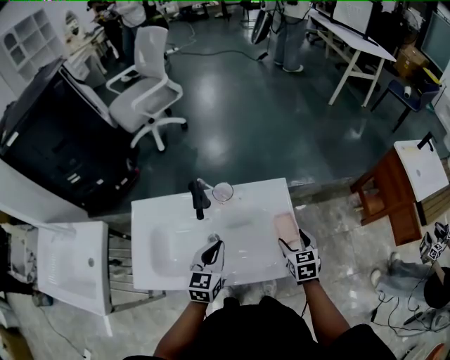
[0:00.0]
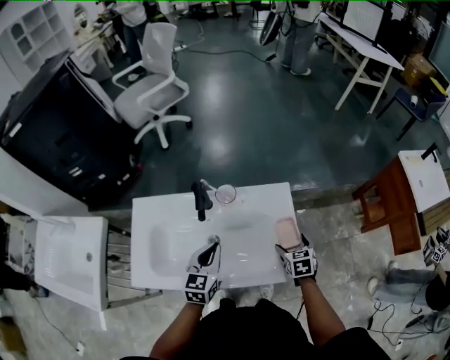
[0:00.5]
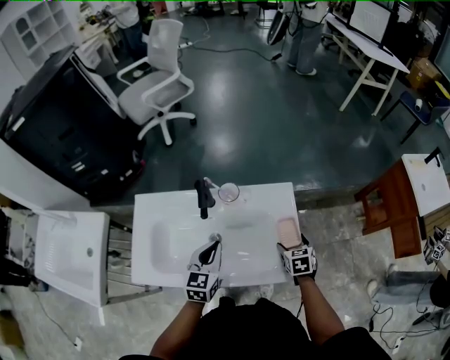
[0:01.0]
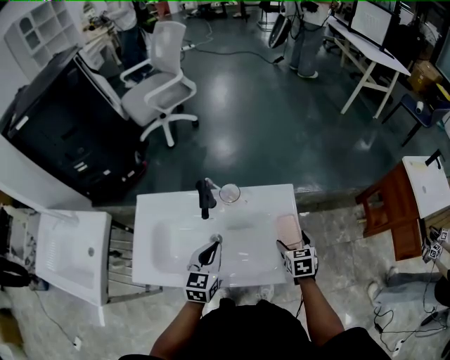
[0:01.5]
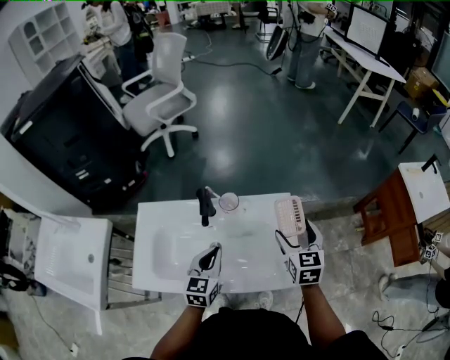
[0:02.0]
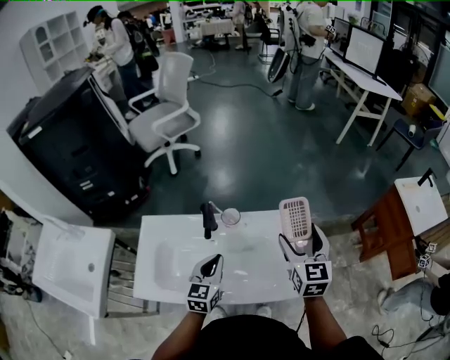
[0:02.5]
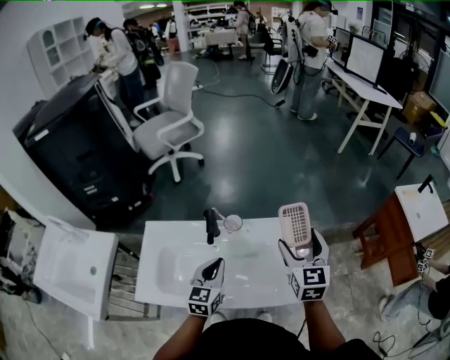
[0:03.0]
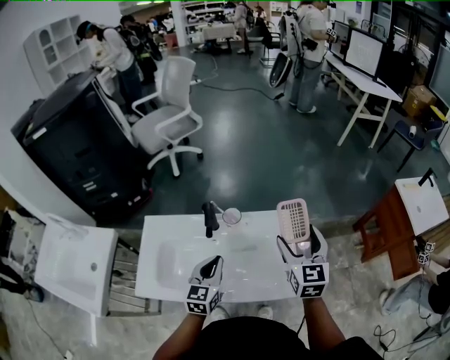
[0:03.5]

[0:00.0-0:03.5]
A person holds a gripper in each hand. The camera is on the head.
0:00.0 to 0:02.0: The right gripper heads upward and forward, covering some 15 cm.
0:02.0 to 0:03.5: The right gripper is displaced upward by some 10 cm.

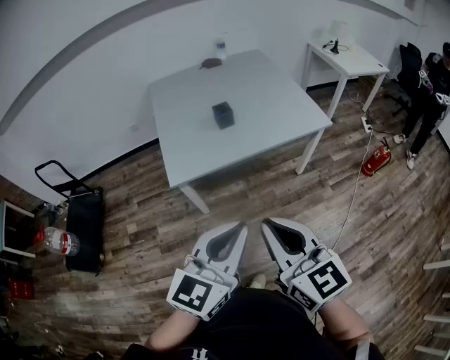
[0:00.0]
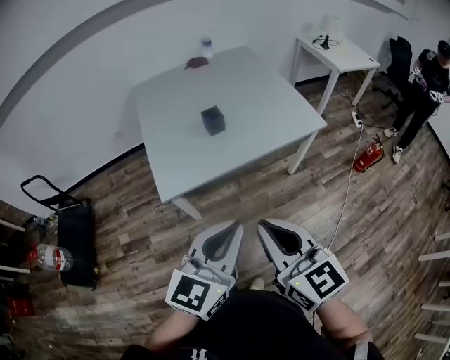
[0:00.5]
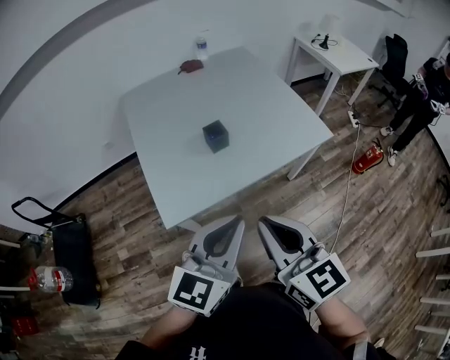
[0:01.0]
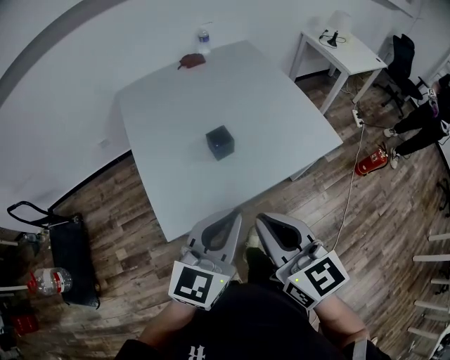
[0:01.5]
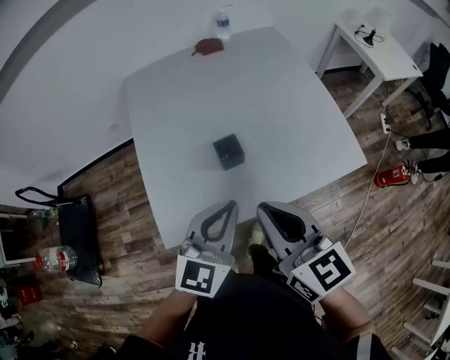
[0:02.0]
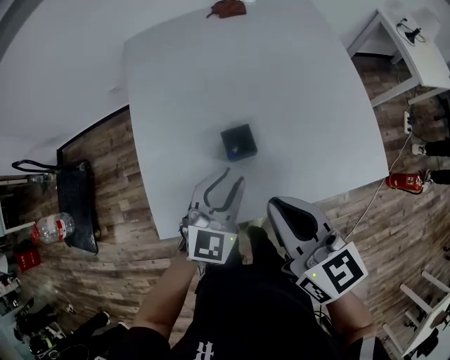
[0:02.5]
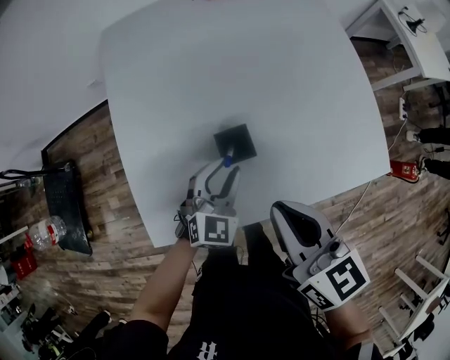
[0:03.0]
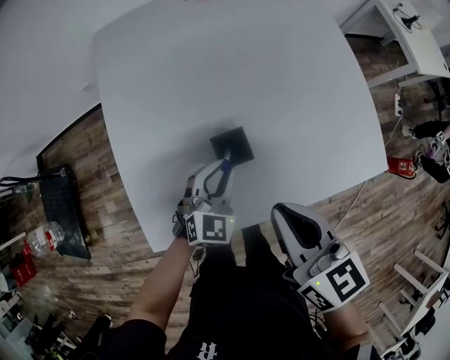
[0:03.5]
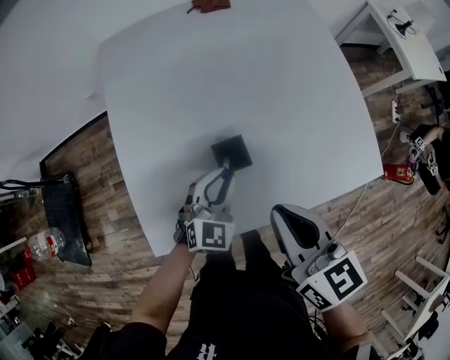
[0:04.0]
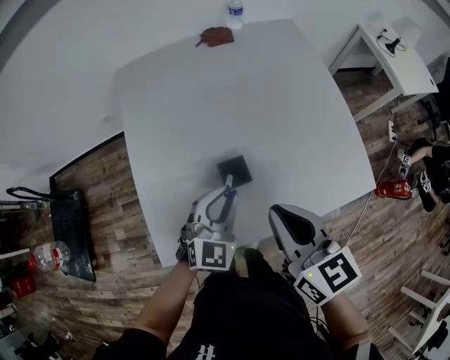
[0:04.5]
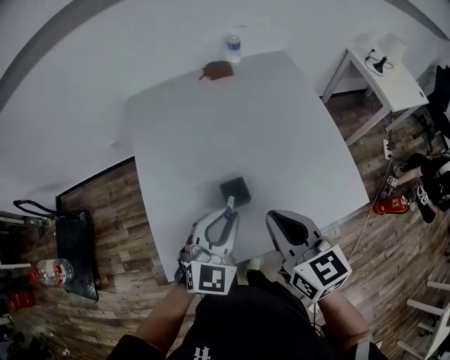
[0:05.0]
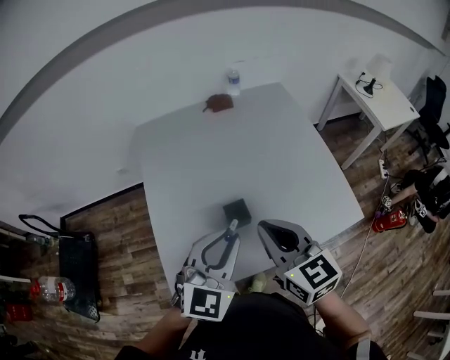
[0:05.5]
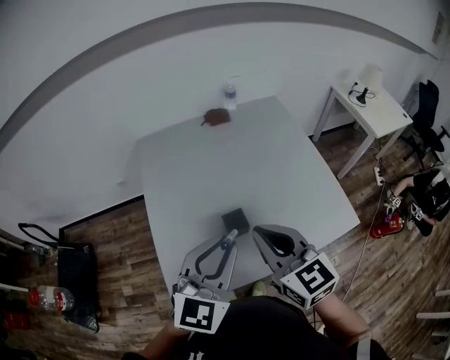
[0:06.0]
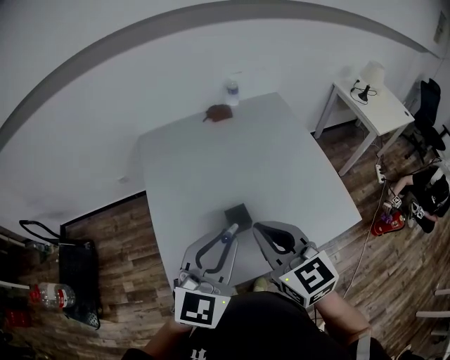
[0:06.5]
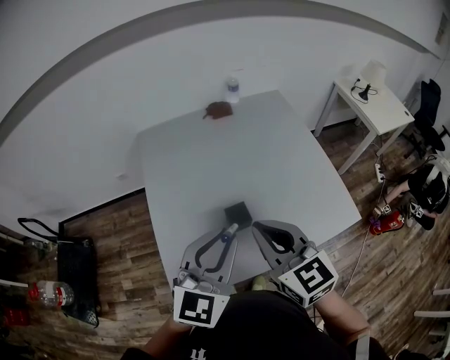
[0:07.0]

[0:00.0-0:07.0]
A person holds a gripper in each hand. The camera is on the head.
0:00.0 to 0:02.0: The grippers both shift forward by approximately 35 cm.
0:02.0 to 0:03.5: The left gripper is displaced downward and forward by about 25 cm, and changes its angle by some 20 degrees. Meanwhile the right gripper moves downward and forward, some 15 cm.
0:03.5 to 0:05.0: The left gripper goes some 15 cm upward, while the right gripper goes some 5 cm upward.
0:05.0 to 0:07.0: The left gripper moves upward, approximately 15 cm, while the right gripper goes about 5 cm upward.

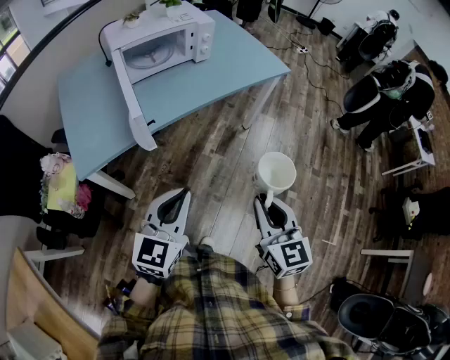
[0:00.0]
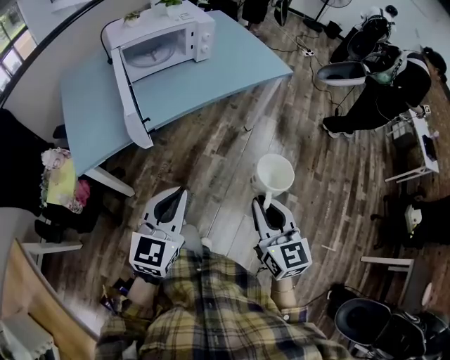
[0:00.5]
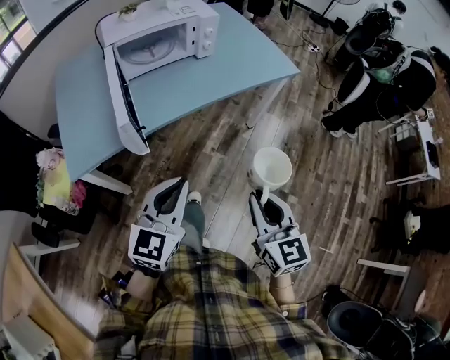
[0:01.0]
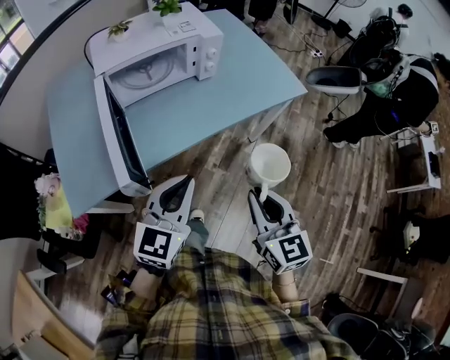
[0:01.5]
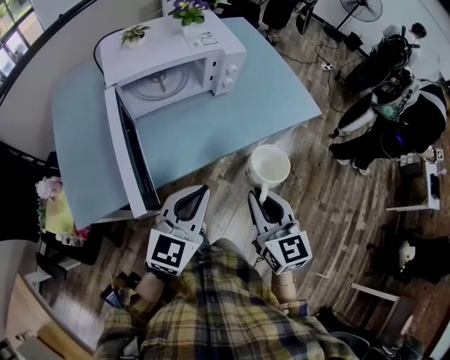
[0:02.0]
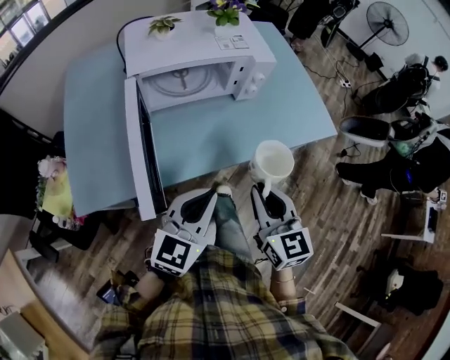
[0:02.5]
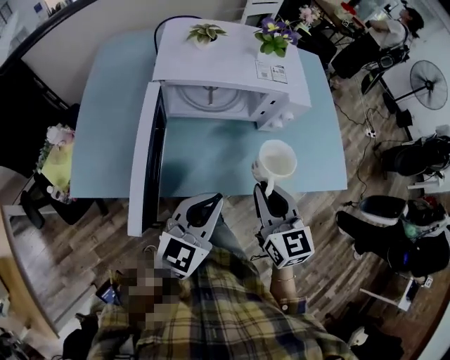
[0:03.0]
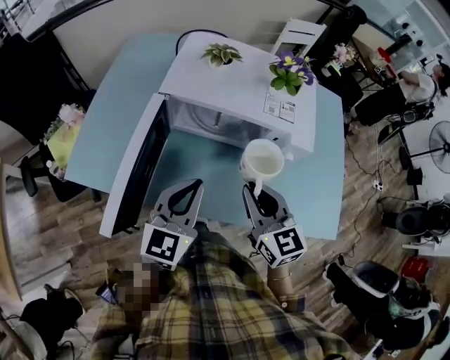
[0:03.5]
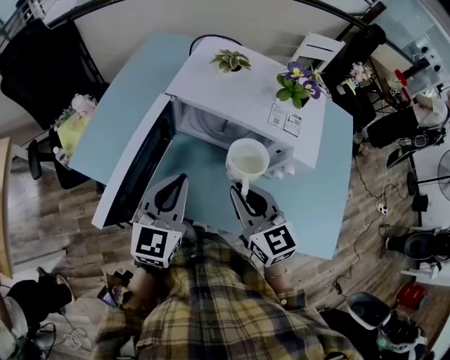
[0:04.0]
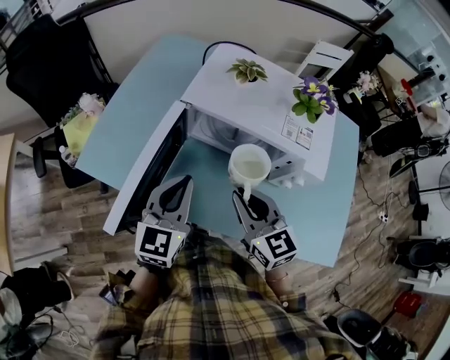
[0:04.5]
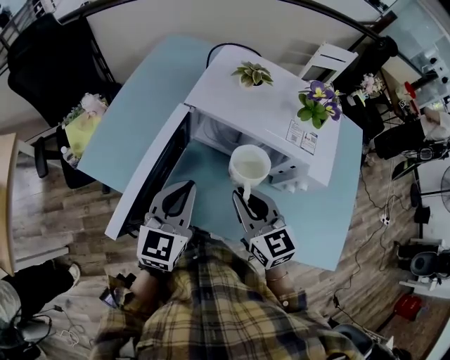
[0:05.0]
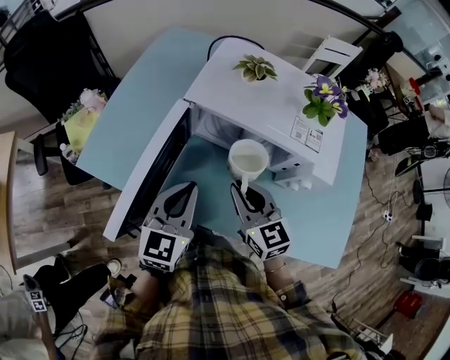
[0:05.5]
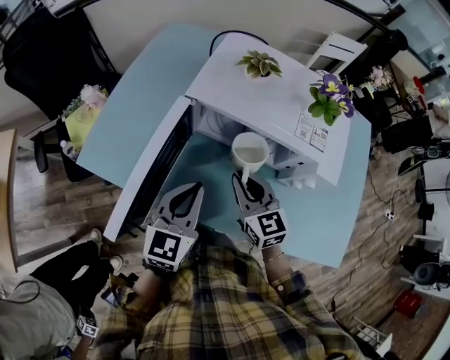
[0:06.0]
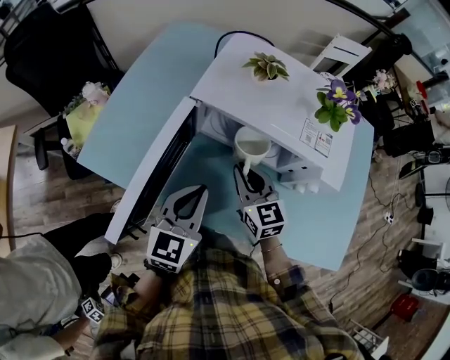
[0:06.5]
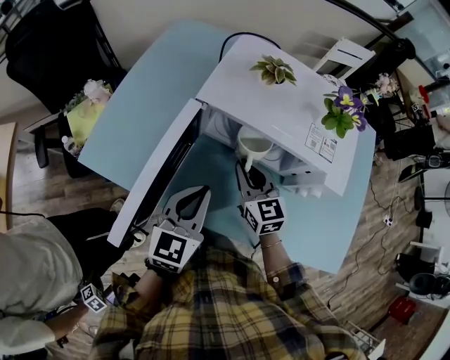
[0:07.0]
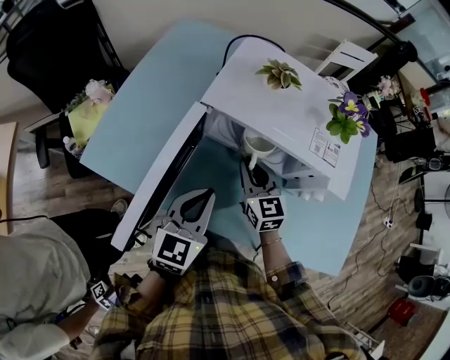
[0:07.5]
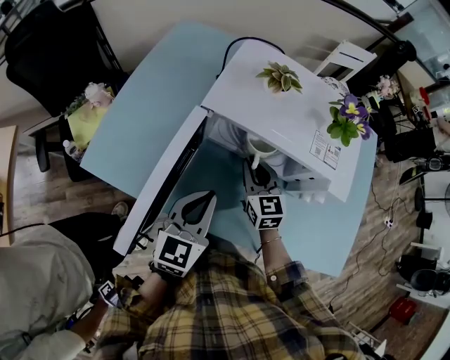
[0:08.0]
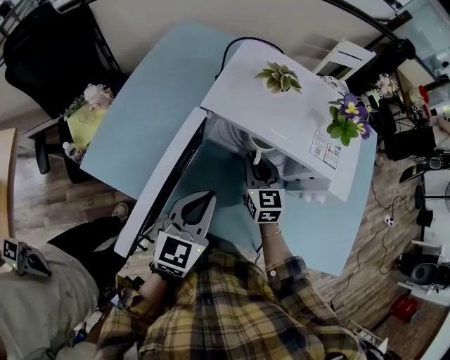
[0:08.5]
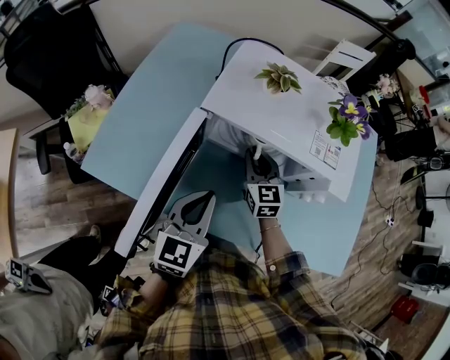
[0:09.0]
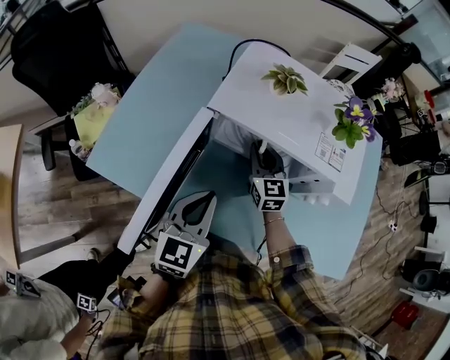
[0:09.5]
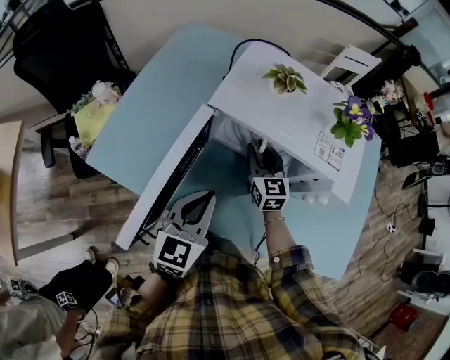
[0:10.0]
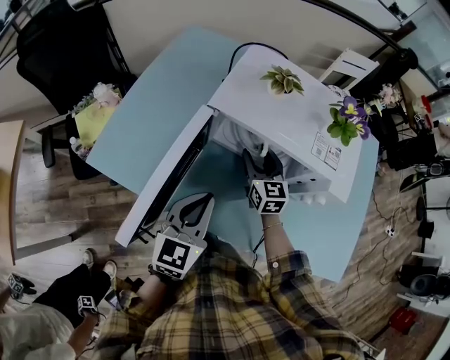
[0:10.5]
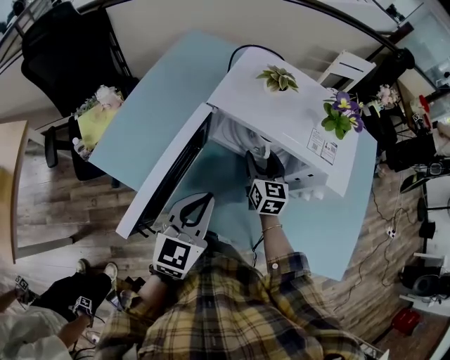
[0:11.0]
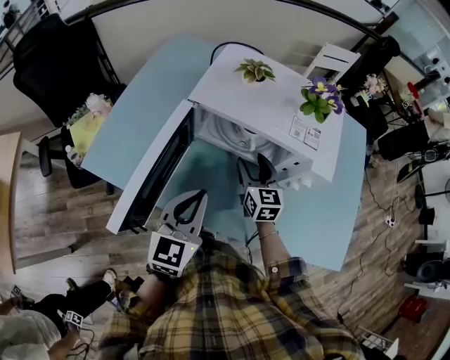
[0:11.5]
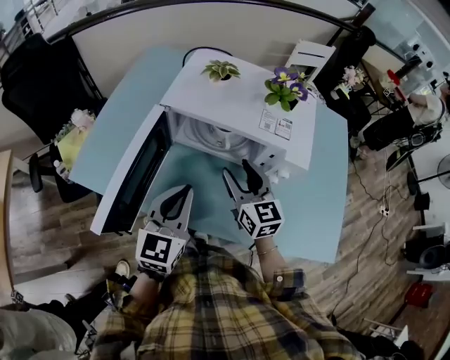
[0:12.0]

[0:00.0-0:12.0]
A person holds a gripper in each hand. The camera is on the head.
0:00.0 to 0:02.0: The grippers both shift forward by some 30 cm.
0:02.0 to 0:04.0: The right gripper shifts by some 25 cm, and turns by about 50 degrees. Meanwhile the left gripper moves approximately 20 cm, and turns by roughly 60 degrees.
0:04.0 to 0:06.0: The right gripper goes approximately 10 cm downward and forward.
0:06.0 to 0:08.0: The right gripper is displaced forward by about 10 cm.
0:08.0 to 0:10.0: The grippers move only a little.
0:10.0 to 0:12.0: The left gripper ends up roughly 5 cm from where it was. The right gripper goes roughly 15 cm backward, upward and to the right, and opens its fingers.

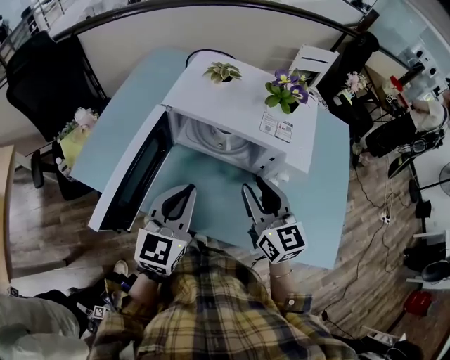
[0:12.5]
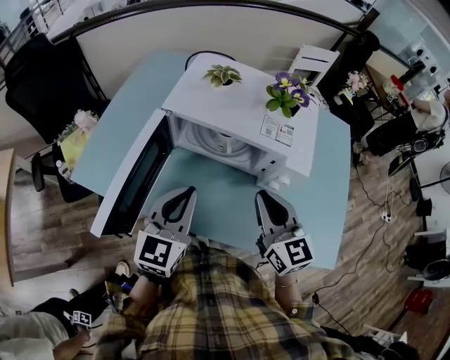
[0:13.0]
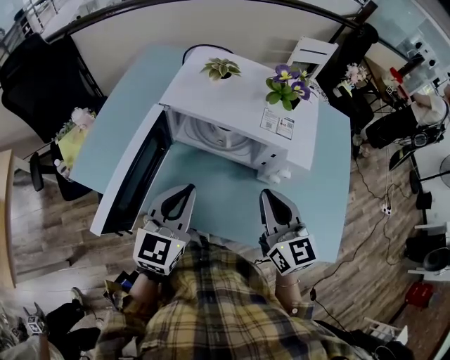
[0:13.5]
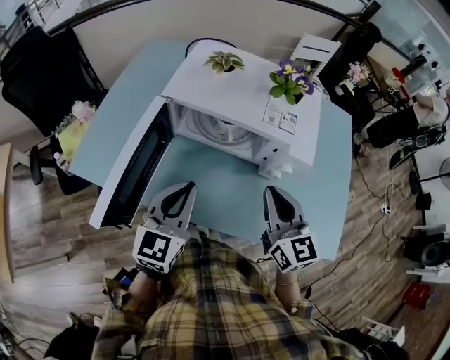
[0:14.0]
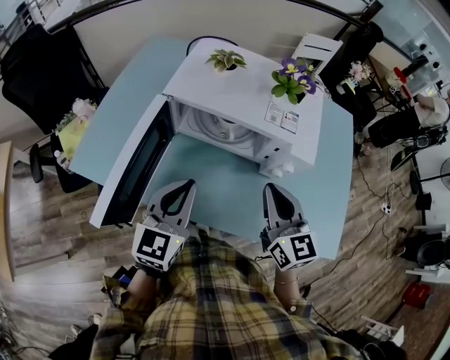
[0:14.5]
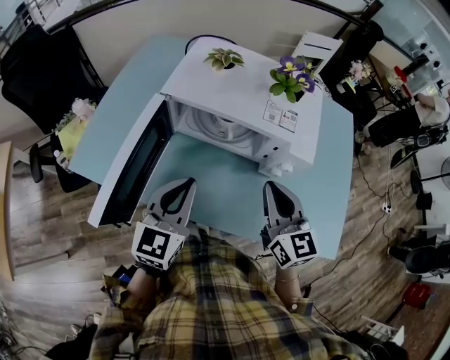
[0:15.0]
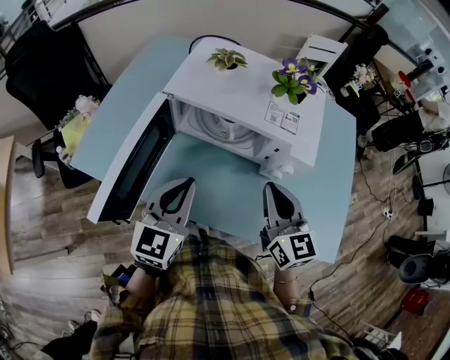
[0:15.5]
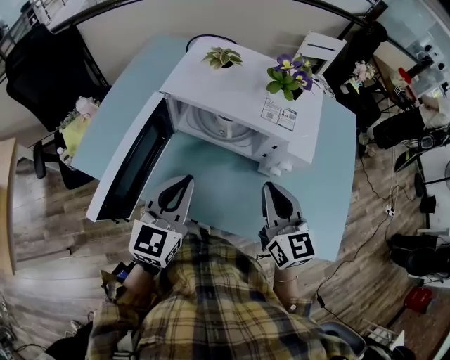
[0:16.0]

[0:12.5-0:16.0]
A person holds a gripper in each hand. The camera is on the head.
0:12.5 to 0:14.5: The right gripper closes.
0:14.5 to 0:16.0: Both grippers stay put.
